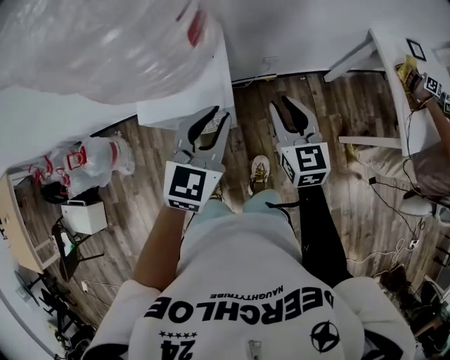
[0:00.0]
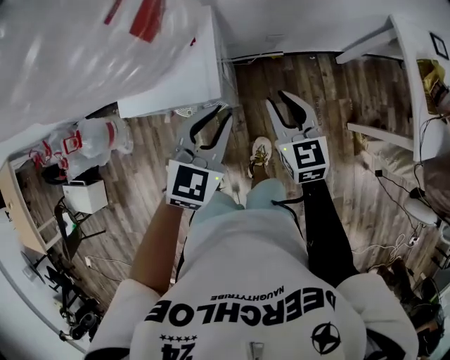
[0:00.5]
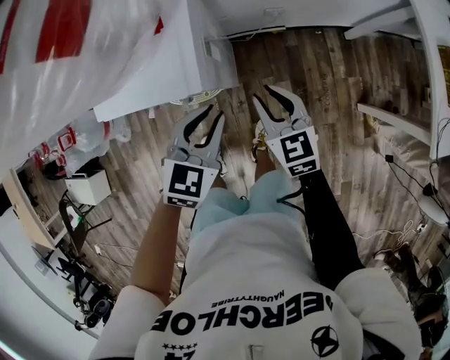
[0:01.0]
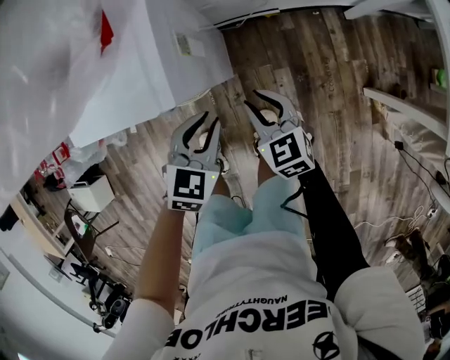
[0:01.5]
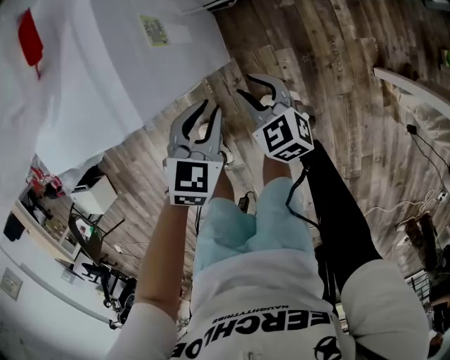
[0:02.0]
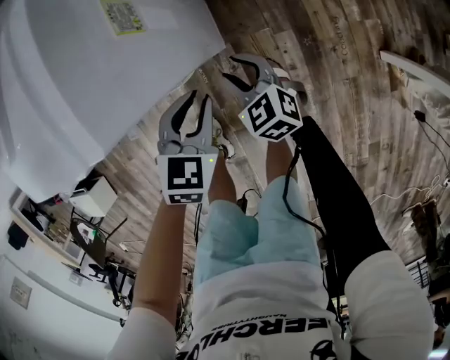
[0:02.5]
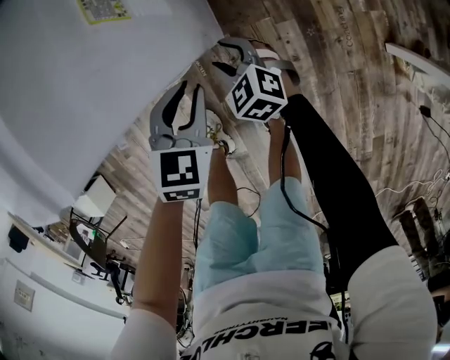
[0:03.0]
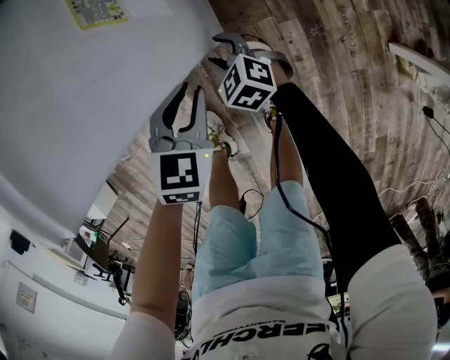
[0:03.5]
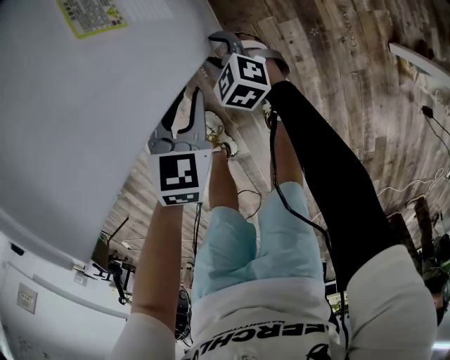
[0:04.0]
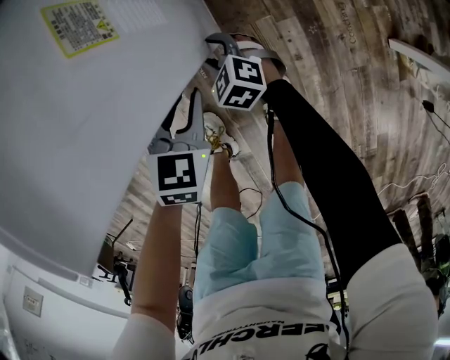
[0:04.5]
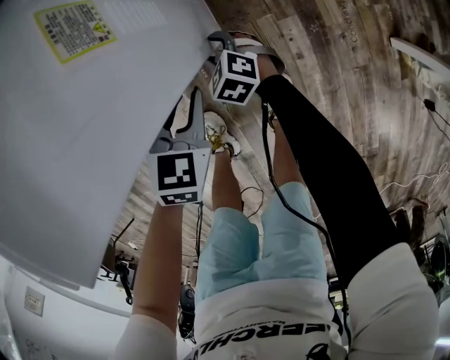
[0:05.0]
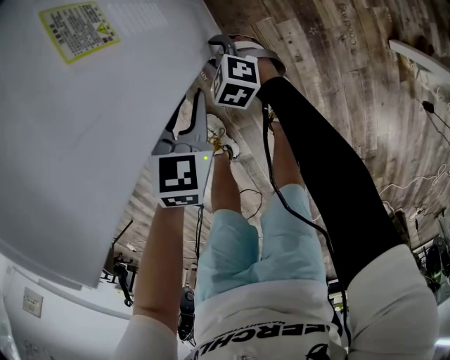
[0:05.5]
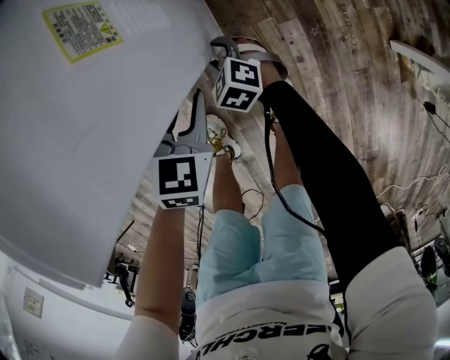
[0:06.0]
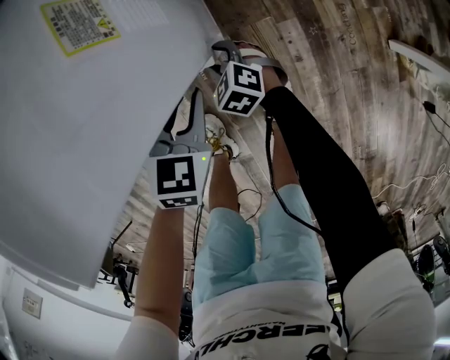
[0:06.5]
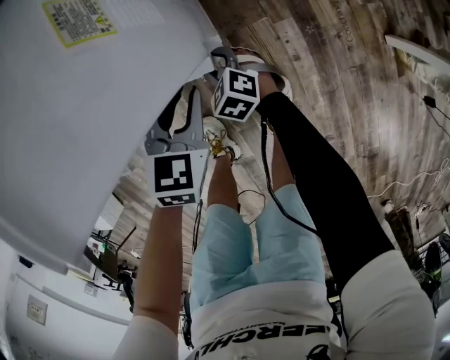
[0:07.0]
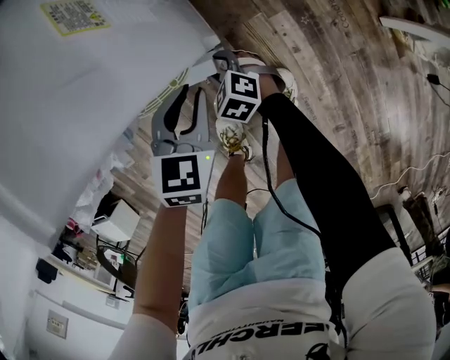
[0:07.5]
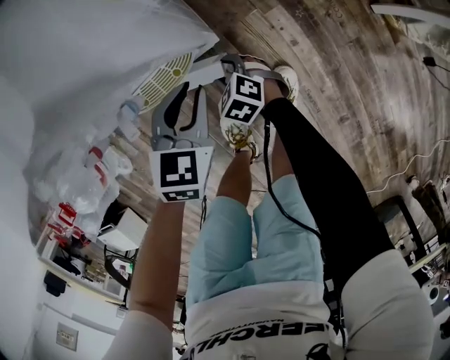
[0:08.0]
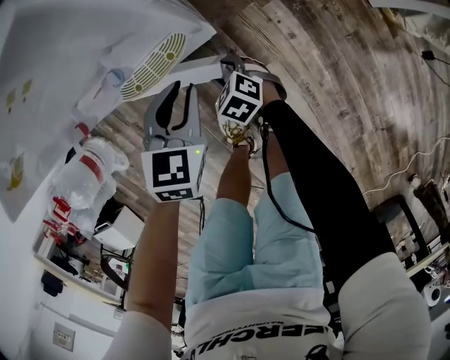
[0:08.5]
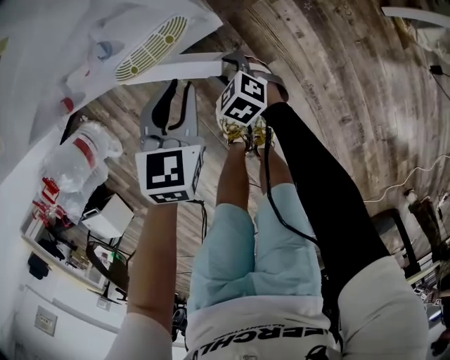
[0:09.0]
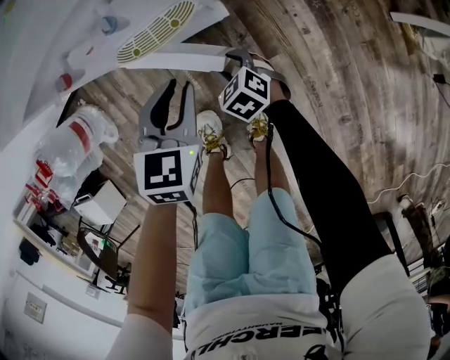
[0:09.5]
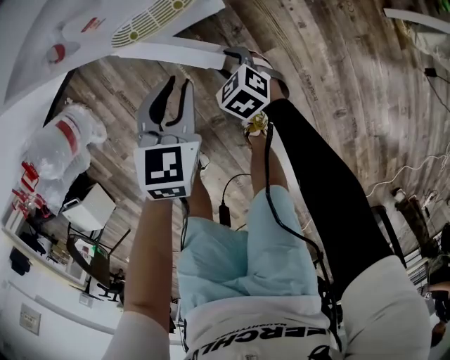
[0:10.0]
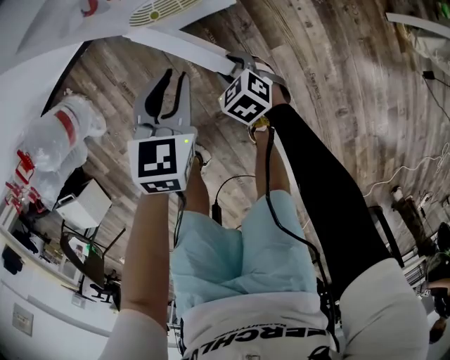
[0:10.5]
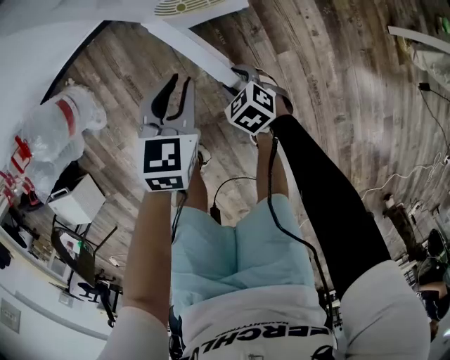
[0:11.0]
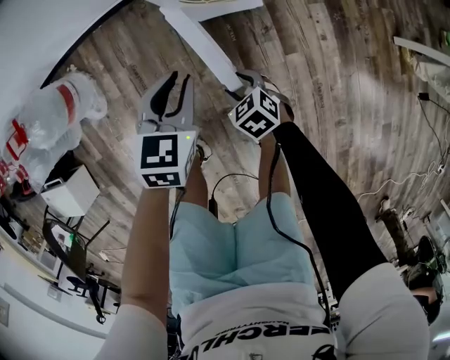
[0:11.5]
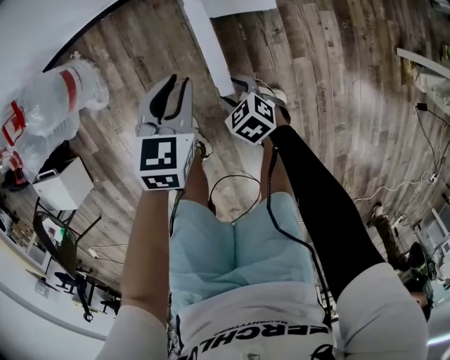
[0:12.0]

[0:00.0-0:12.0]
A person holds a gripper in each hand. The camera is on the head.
0:00.0 to 0:02.0: The grippers both shift downward by approximately 35 cm. The left gripper changes its angle by roughly 30 degrees; the right gripper rotates roughly 30 degrees.
0:02.0 to 0:04.0: The left gripper is displaced downward by approximately 10 cm. Meanwhile the right gripper moves downward and to the left, some 20 cm.
0:04.0 to 0:06.0: The grippers make only small movements.
0:06.0 to 0:08.0: The right gripper goes about 10 cm backward.
0:08.0 to 0:10.0: The two grippers go about 15 cm backward and to the left.
0:10.0 to 0:12.0: The grippers both shift to the left by approximately 20 cm.

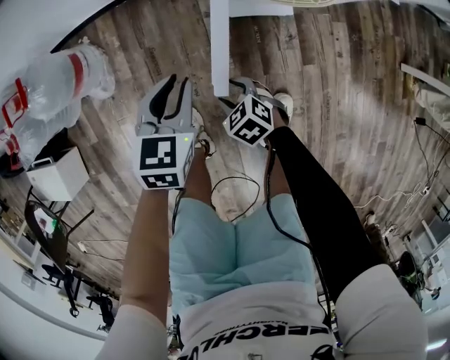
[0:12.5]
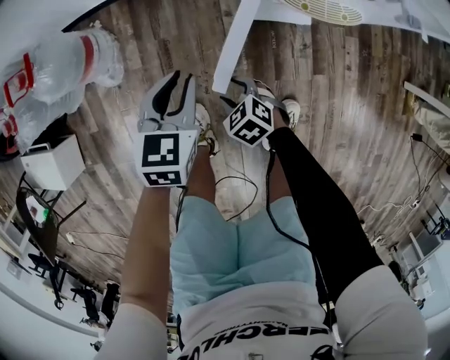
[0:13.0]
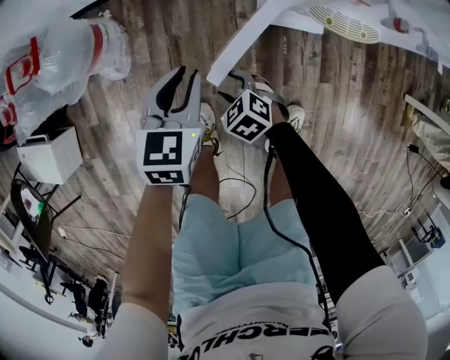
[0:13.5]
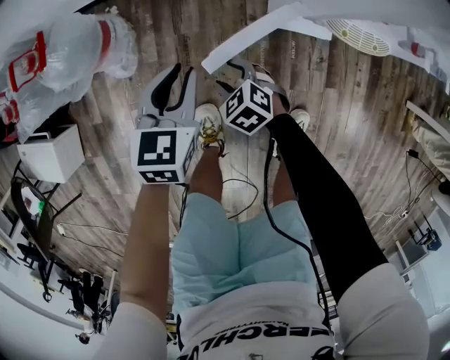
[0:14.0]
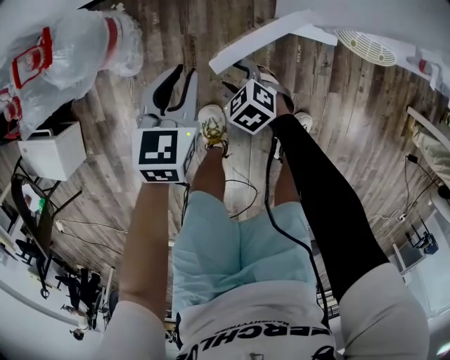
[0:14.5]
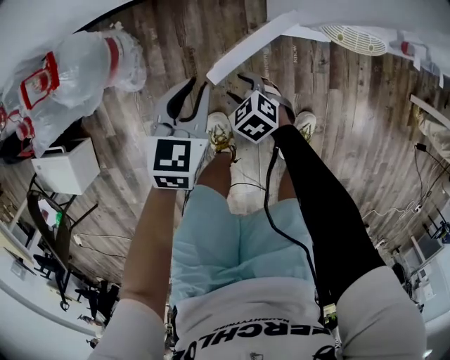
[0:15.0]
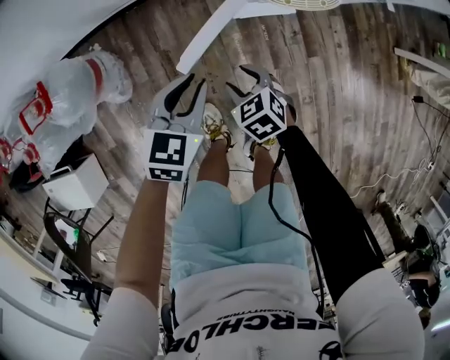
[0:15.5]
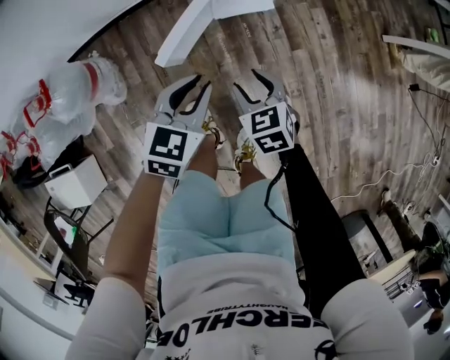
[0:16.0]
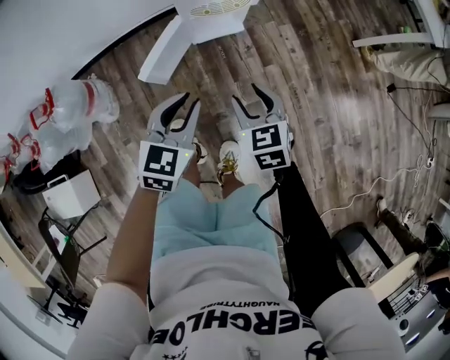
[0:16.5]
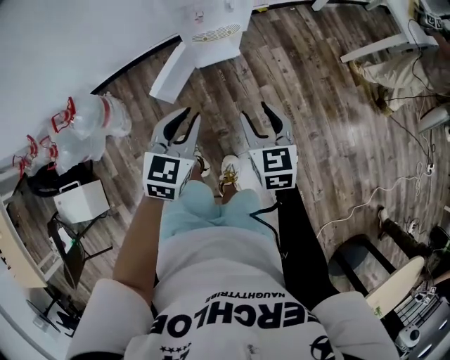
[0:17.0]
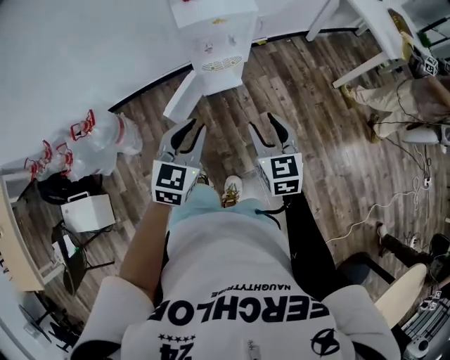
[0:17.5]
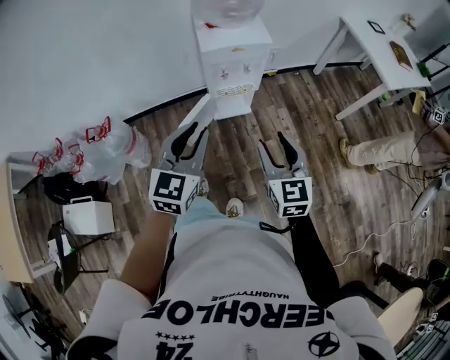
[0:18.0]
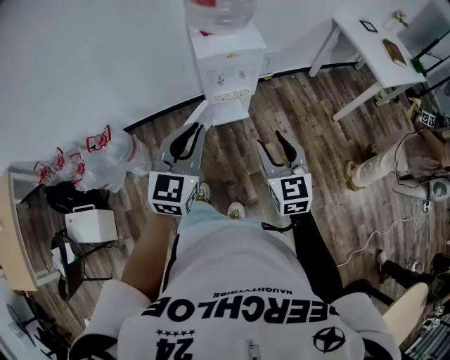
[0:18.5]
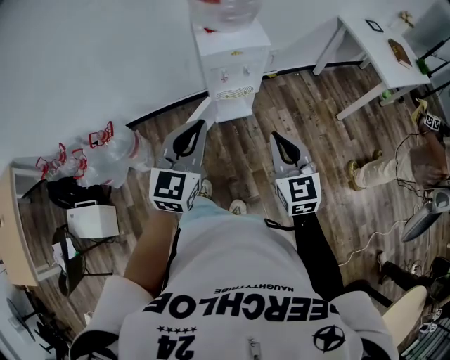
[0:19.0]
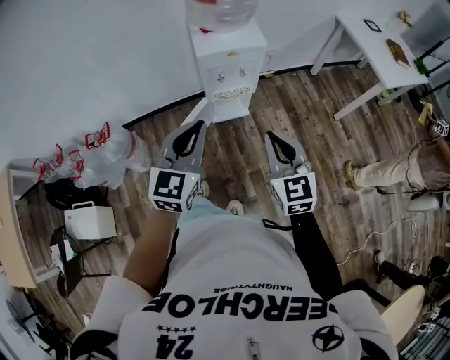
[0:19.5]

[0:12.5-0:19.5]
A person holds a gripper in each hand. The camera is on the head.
0:12.5 to 0:14.5: The right gripper heads forward and to the left, covering approximately 15 cm. The left gripper heads to the left and forward, covering roughly 15 cm.
0:14.5 to 0:16.0: The left gripper changes place by roughly 25 cm, and rotates about 30 degrees, while the right gripper ends up roughly 30 cm from where it was, and changes its angle by roughly 50 degrees.
0:16.0 to 0:17.5: The left gripper heads upward, covering some 30 cm. Meanwhile the right gripper is displaced upward and to the right by about 40 cm, and rotates roughly 30 degrees.
0:17.5 to 0:19.5: The two grippers go about 10 cm upward. The right gripper closes up.

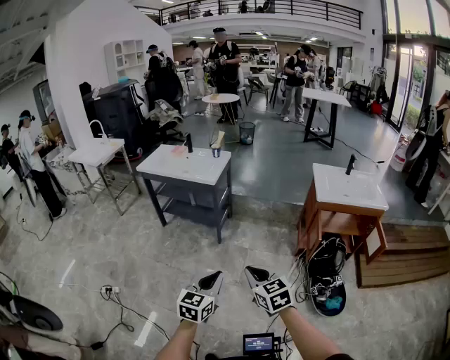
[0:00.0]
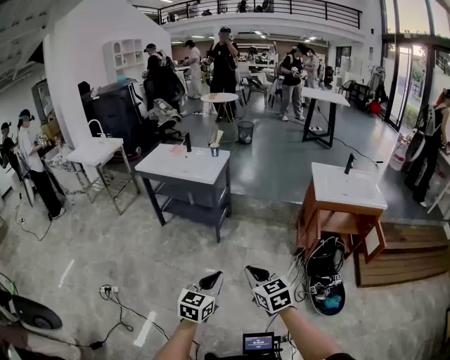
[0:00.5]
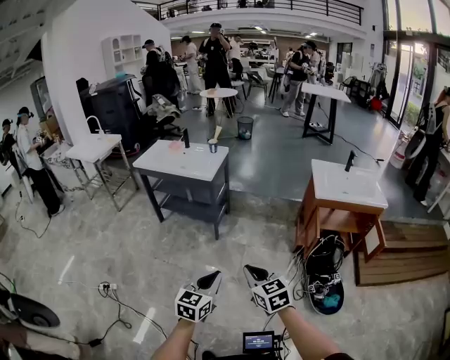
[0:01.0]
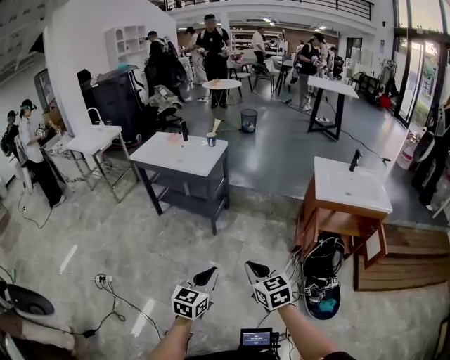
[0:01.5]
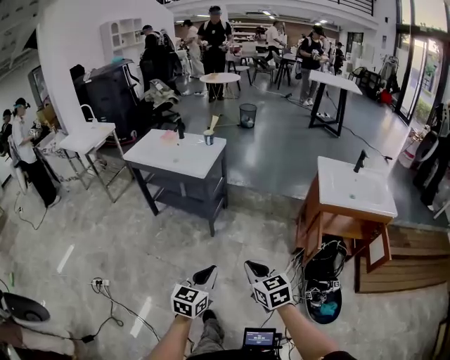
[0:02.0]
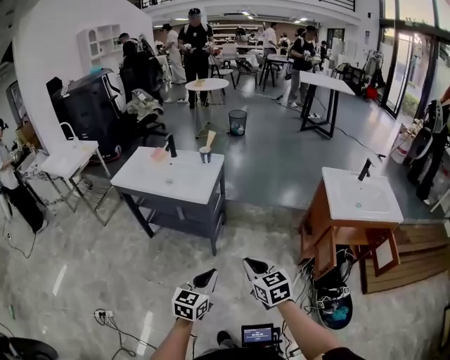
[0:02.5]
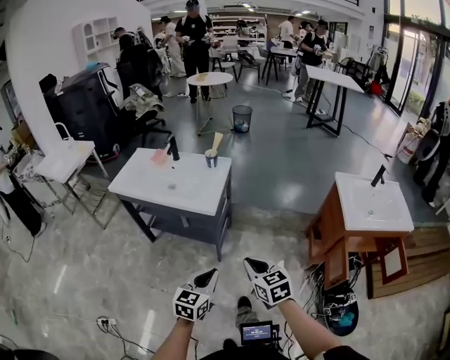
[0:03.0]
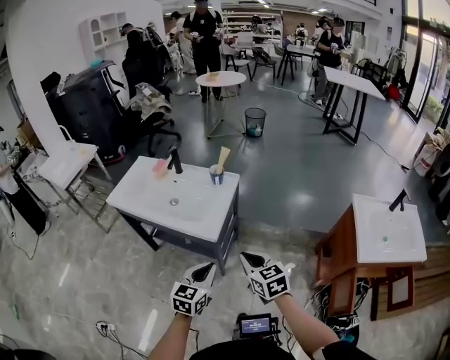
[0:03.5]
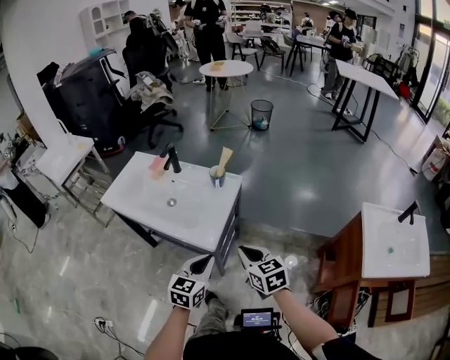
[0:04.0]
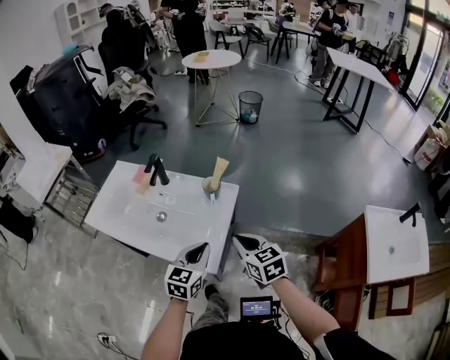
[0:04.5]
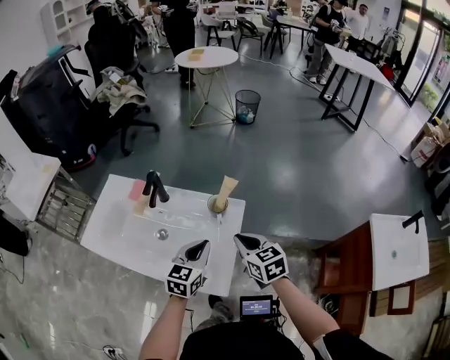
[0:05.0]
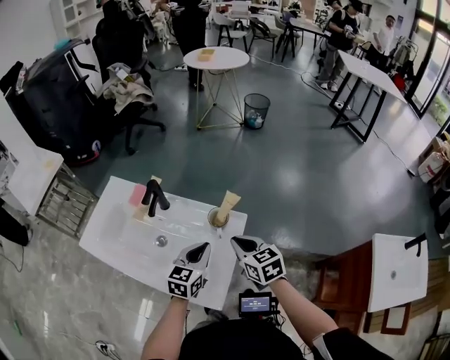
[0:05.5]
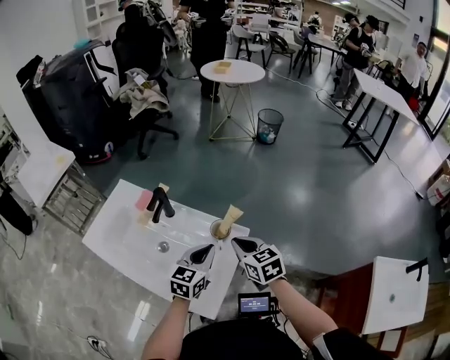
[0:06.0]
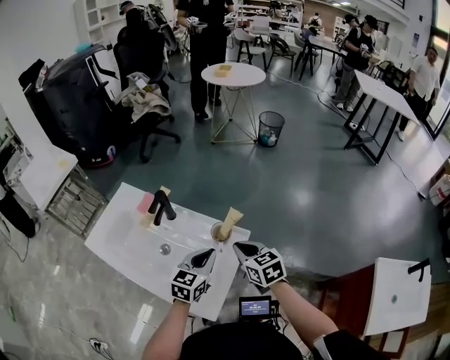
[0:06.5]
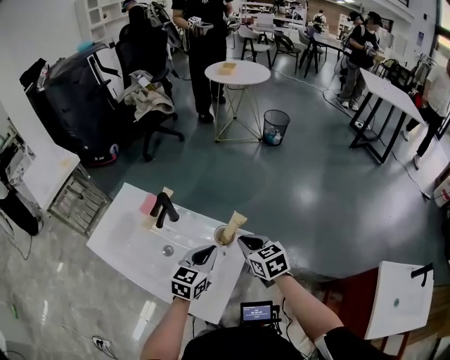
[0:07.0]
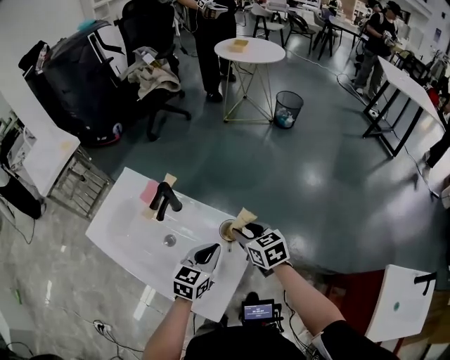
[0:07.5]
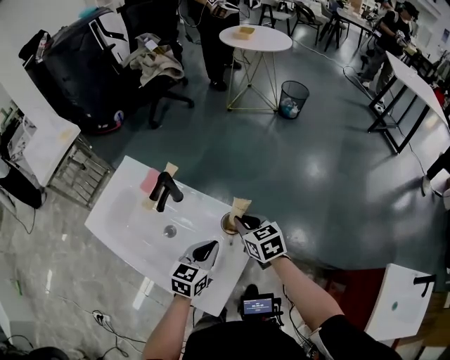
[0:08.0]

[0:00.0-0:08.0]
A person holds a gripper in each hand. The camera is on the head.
0:00.0 to 0:02.0: The right gripper is displaced forward and to the right by about 15 cm. The left gripper moves forward, some 15 cm.
0:02.0 to 0:04.0: Both grippers are carried forward, roughly 60 cm.
0:04.0 to 0:06.0: The grippers both shift forward by roughly 35 cm.
0:06.0 to 0:08.0: The right gripper heads forward and downward, covering approximately 10 cm, and opens and closes again. The left gripper moves approximately 5 cm.
